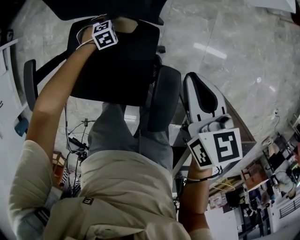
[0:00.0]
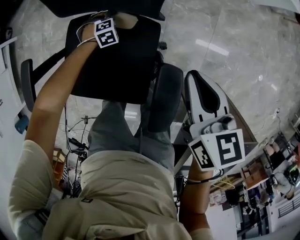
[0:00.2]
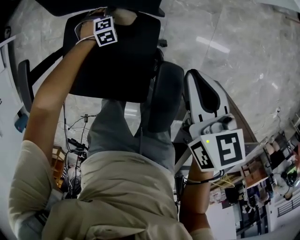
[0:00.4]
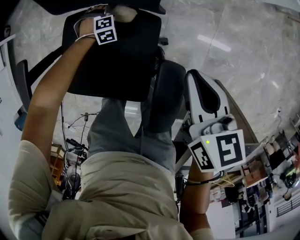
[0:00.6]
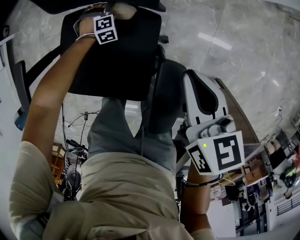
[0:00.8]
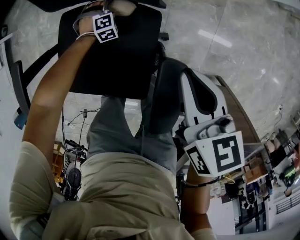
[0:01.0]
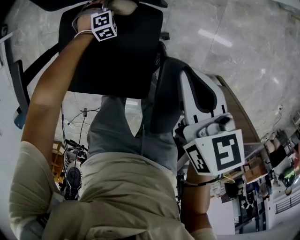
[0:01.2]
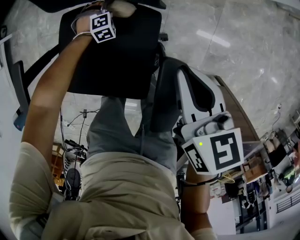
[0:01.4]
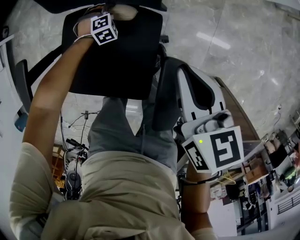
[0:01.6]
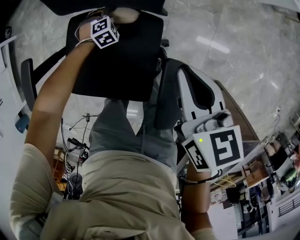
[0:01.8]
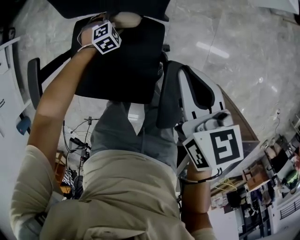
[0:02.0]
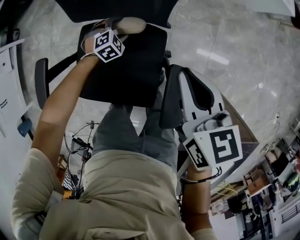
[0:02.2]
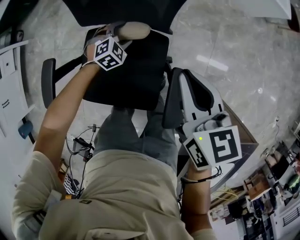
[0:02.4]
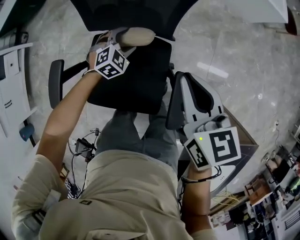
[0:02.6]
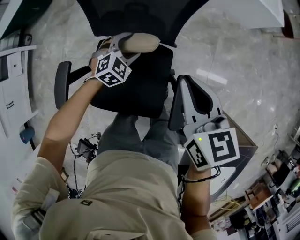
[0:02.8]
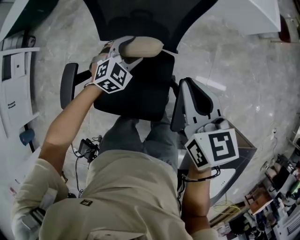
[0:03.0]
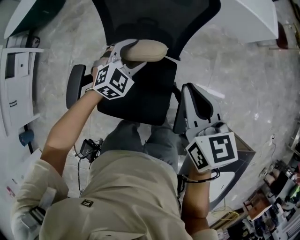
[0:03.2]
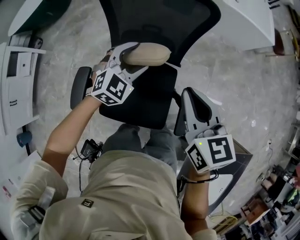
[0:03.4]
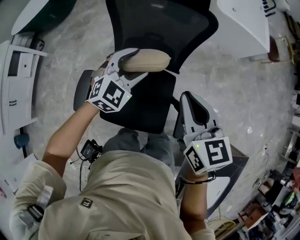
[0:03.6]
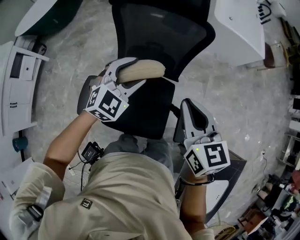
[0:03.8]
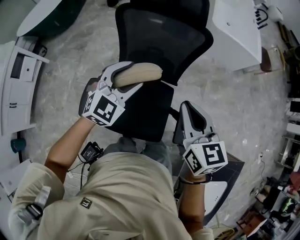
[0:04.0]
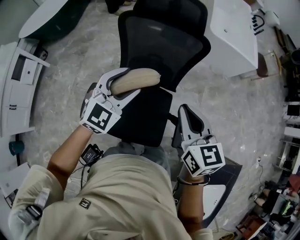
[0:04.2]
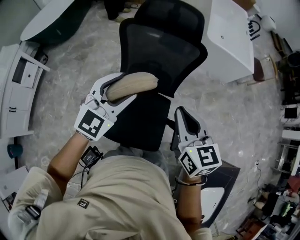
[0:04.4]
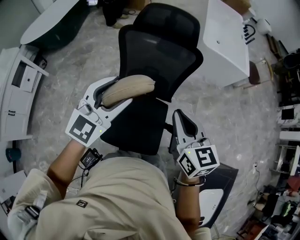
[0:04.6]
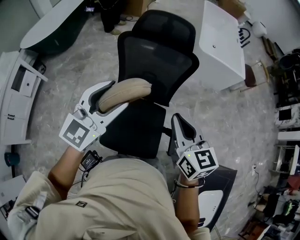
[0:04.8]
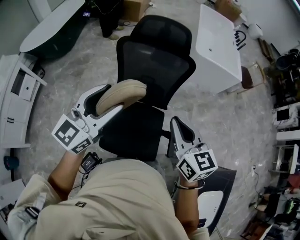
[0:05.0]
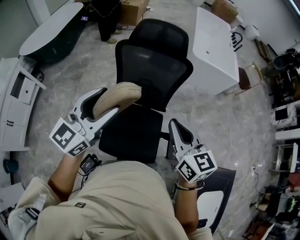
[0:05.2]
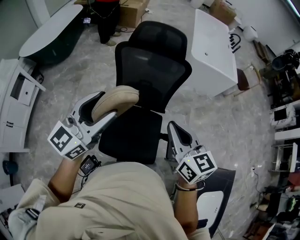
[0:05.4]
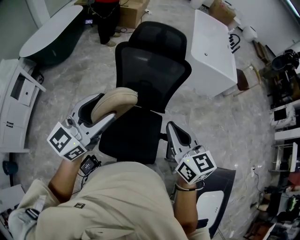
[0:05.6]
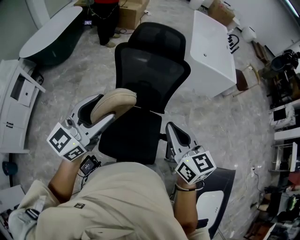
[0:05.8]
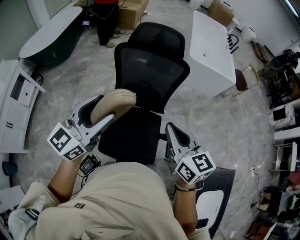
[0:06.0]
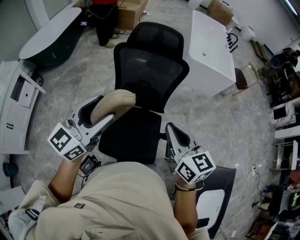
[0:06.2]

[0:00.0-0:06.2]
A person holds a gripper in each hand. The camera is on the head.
0:00.0 to 0:01.6: The right gripper moves approximately 5 cm.
0:01.6 to 0:03.2: The left gripper shifts roughly 40 cm upward, and tilts its fingers roughly 40 degrees upward; the right gripper moves upward, roughly 20 cm.
0:03.2 to 0:04.6: The left gripper heads upward and to the left, covering some 35 cm, and swivels some 40 degrees; the right gripper is displaced upward and to the left by some 15 cm.
0:04.6 to 0:06.2: The left gripper travels backward and upward by roughly 10 cm, and turns by about 20 degrees. Meanwhile the right gripper is displaced backward by approximately 5 cm.

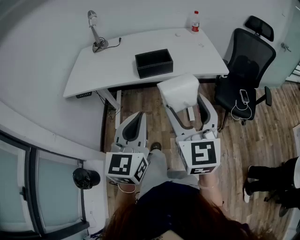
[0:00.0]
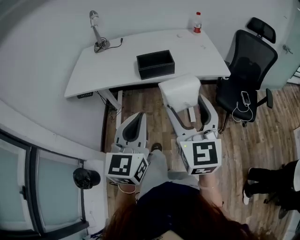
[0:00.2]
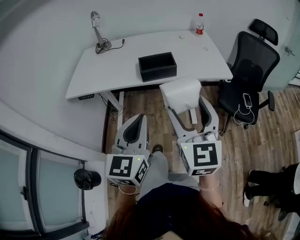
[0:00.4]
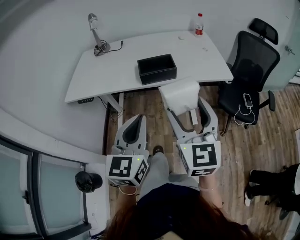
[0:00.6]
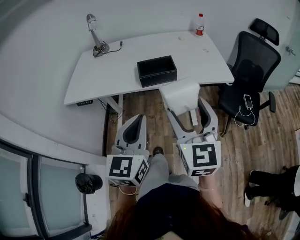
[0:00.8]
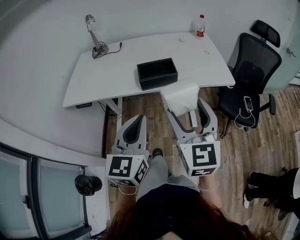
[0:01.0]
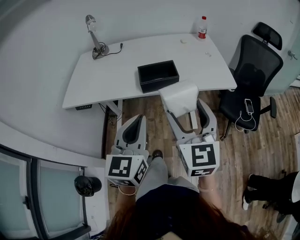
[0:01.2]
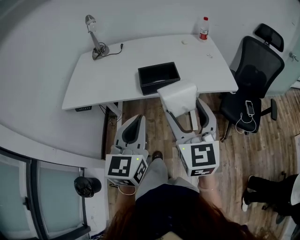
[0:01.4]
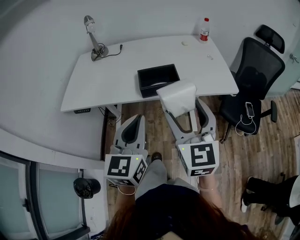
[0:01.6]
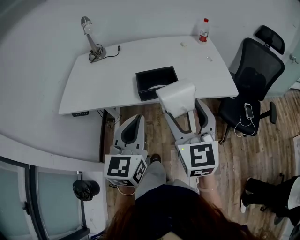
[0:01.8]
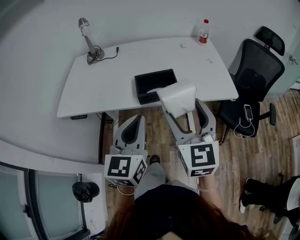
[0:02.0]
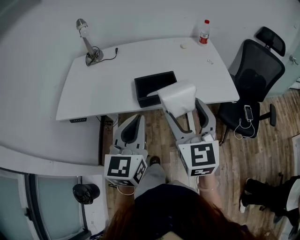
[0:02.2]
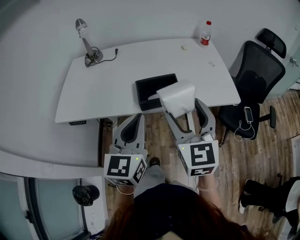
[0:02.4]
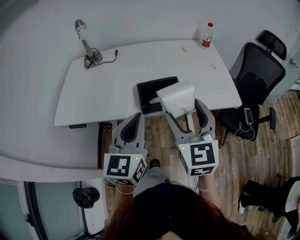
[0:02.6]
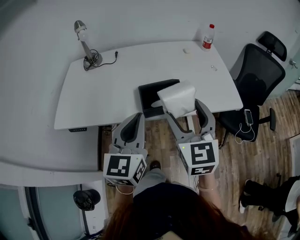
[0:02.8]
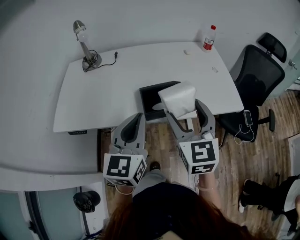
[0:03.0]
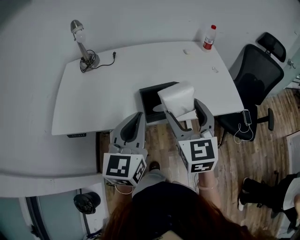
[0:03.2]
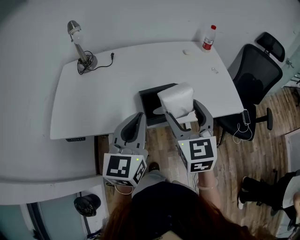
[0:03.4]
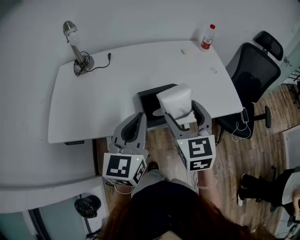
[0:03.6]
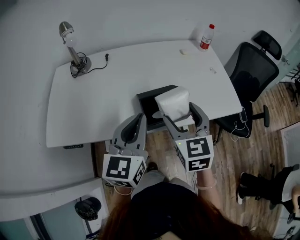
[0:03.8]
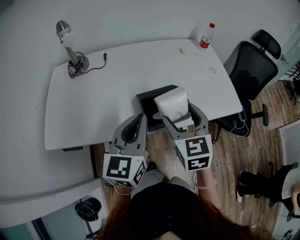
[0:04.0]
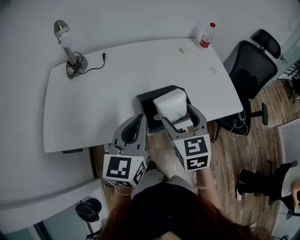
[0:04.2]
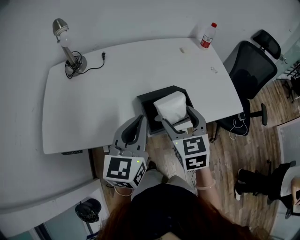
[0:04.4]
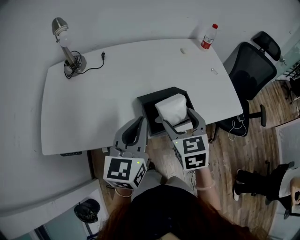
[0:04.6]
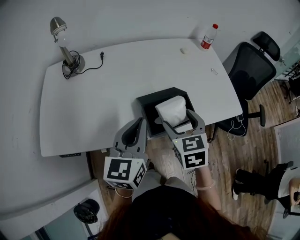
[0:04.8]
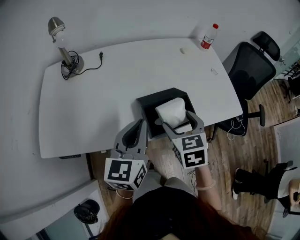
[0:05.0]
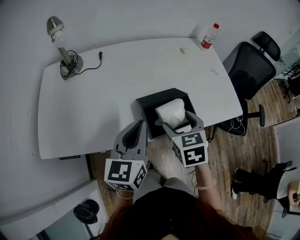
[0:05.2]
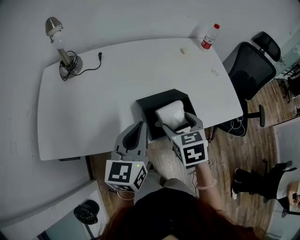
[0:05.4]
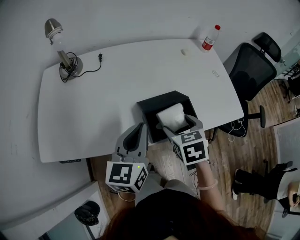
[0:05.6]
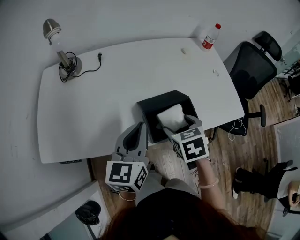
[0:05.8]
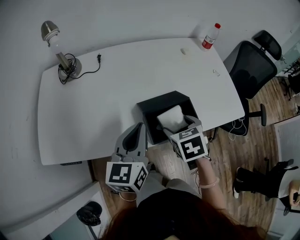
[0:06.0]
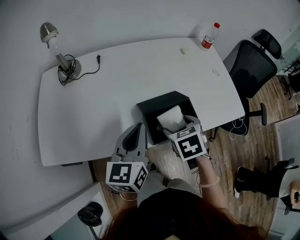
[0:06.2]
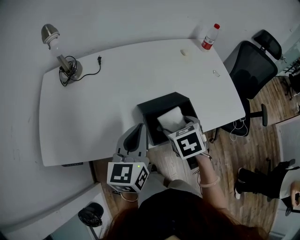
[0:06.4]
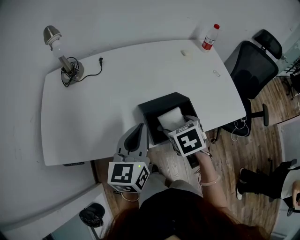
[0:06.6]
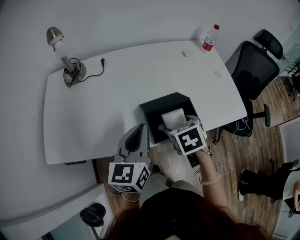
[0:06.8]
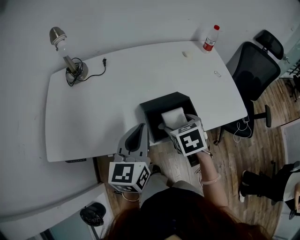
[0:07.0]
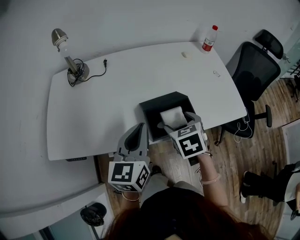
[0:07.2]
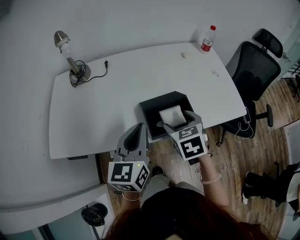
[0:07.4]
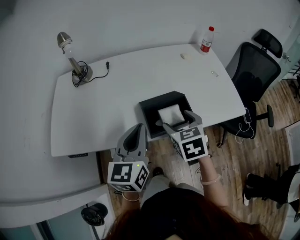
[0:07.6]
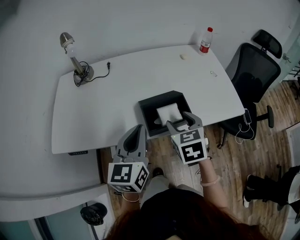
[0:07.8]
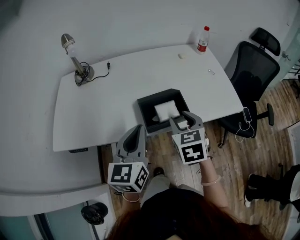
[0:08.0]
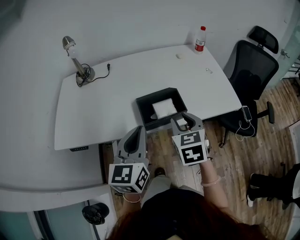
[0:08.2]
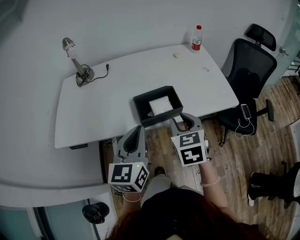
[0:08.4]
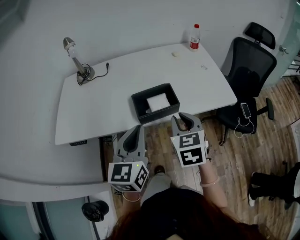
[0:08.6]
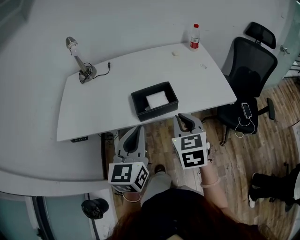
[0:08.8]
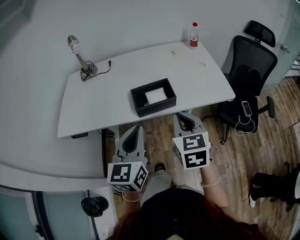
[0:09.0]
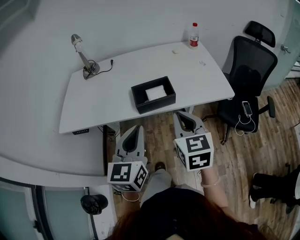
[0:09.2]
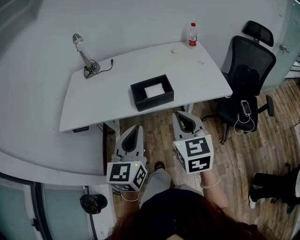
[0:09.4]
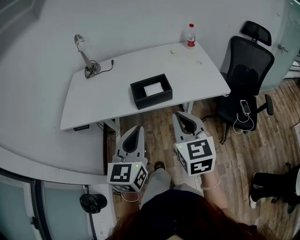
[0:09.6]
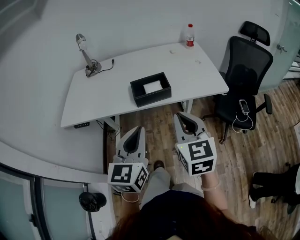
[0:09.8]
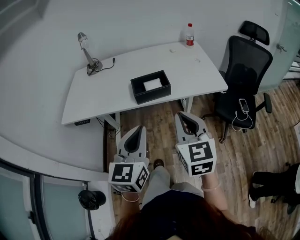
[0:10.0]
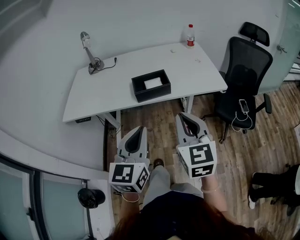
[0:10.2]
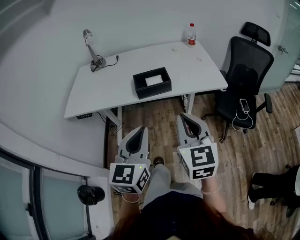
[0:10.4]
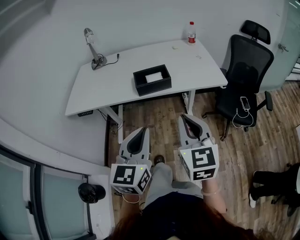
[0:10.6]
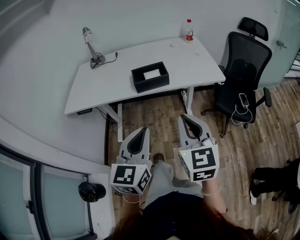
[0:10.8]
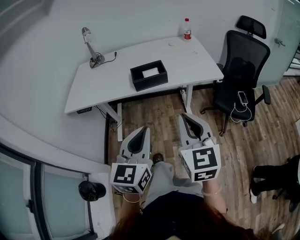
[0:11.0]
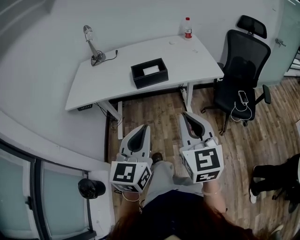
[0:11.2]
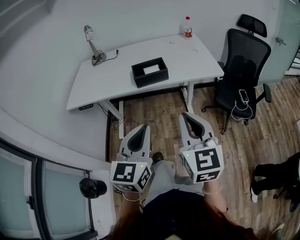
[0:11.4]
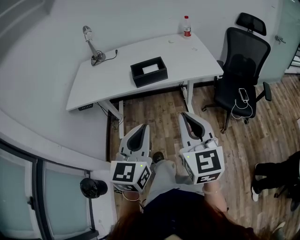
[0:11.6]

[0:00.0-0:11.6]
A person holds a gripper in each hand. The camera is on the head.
0:00.0 to 0:01.4: The two grippers go some 10 cm forward.
0:01.4 to 0:02.8: Both grippers travel together forward, approximately 15 cm.
0:02.8 to 0:04.4: The left gripper goes some 10 cm forward. Meanwhile the right gripper moves forward, downward and to the left, some 15 cm, and swivels roughly 20 degrees.
0:04.4 to 0:05.8: The right gripper heads downward, covering some 10 cm, and changes its angle by some 30 degrees.
0:05.8 to 0:07.2: The grippers move only a little.
0:07.2 to 0:08.8: The right gripper travels backward, upward and to the right by about 15 cm, changes its angle by approximately 20 degrees, and closes up. Meanwhile the left gripper moves backward and to the right, roughly 15 cm.
0:08.8 to 0:10.2: Both grippers travel together backward, approximately 15 cm.
0:10.2 to 0:11.6: Both grippers move backward, about 10 cm.

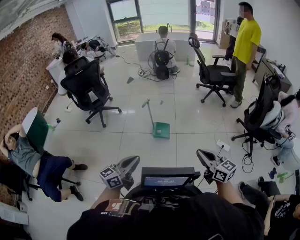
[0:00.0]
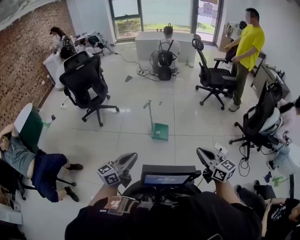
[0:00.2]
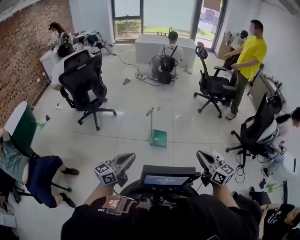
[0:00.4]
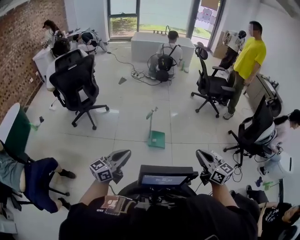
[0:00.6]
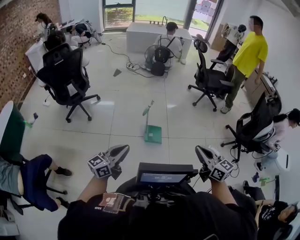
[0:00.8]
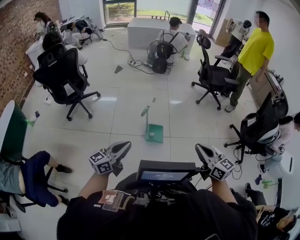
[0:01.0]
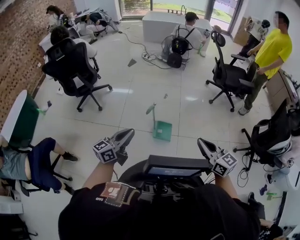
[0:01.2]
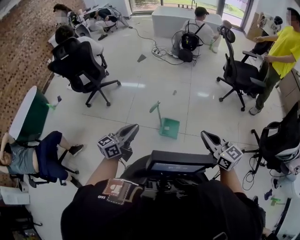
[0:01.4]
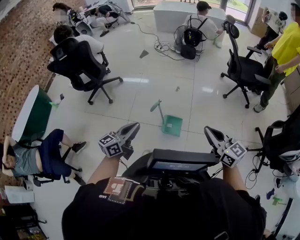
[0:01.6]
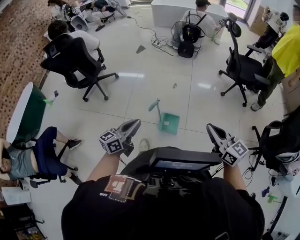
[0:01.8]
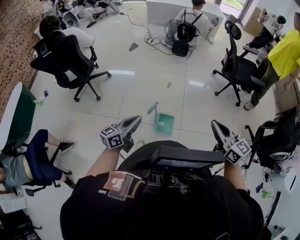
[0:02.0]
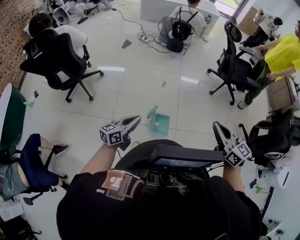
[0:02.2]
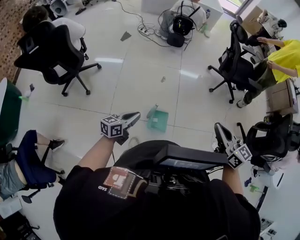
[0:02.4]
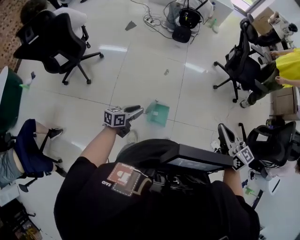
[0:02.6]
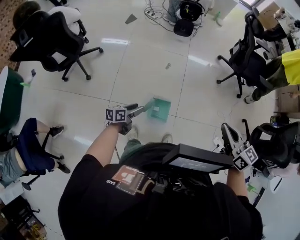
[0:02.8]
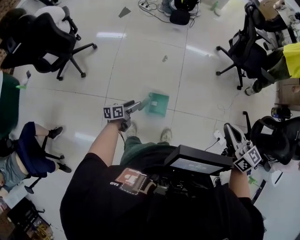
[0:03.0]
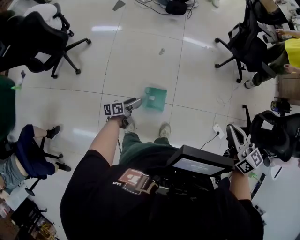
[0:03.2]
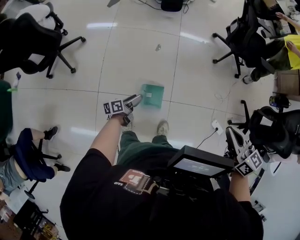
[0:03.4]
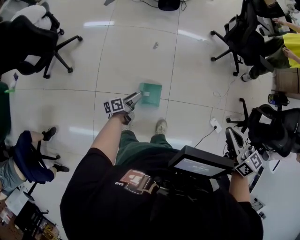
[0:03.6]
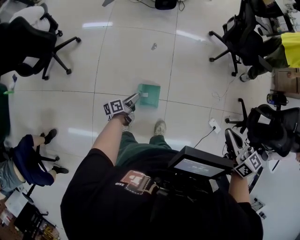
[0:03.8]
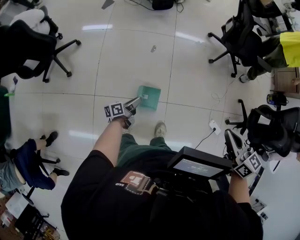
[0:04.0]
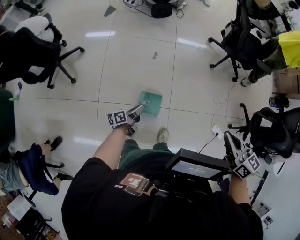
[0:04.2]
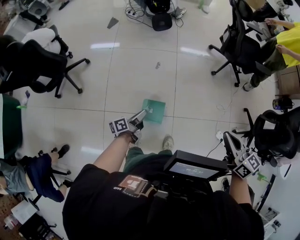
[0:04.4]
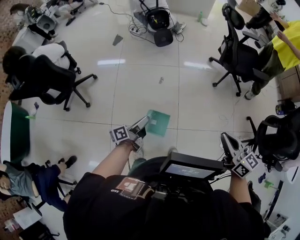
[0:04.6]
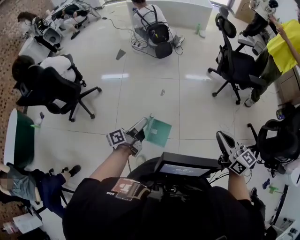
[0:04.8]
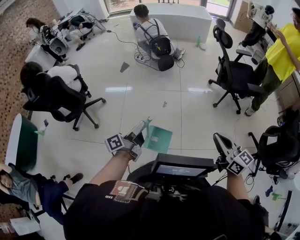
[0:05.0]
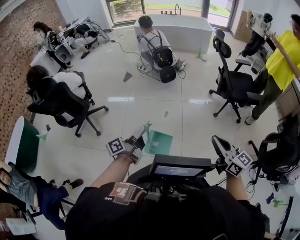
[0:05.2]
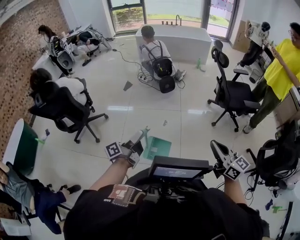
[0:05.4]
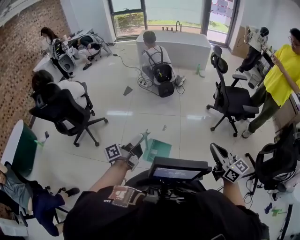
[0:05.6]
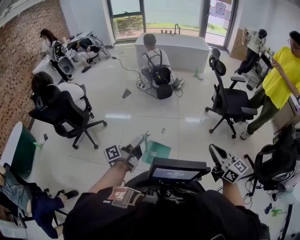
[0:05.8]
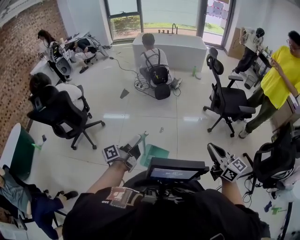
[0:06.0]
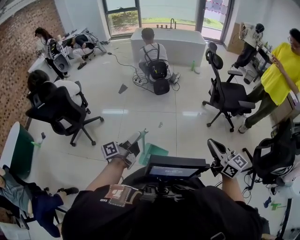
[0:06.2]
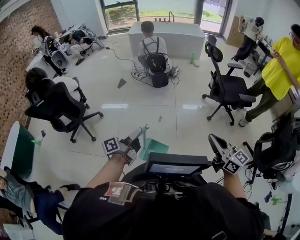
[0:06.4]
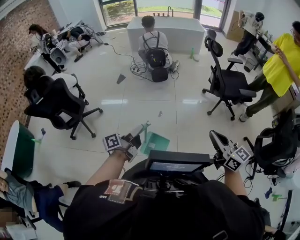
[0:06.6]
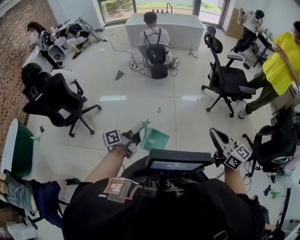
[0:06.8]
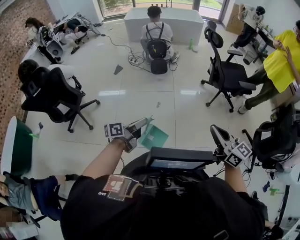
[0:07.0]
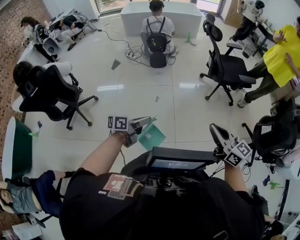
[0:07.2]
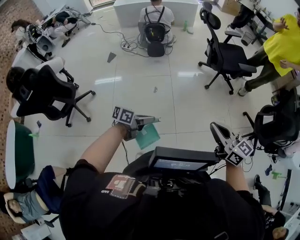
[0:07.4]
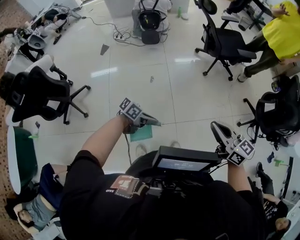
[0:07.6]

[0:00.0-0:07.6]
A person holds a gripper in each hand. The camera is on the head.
0:00.0 to 0:01.6: The two grippers travel together, forward, about 70 cm.
0:01.6 to 0:03.0: The two grippers travel together, forward, approximately 50 cm. The left gripper heads downward, covering about 40 cm, turns by some 40 degrees, and opens.
0:03.0 to 0:04.6: The right gripper moves to the right, approximately 10 cm, and goes downward and returns, approximately 10 cm each way; the left gripper moves upward and to the right, about 25 cm, turns by roughly 20 degrees, and closes its fingers.
0:04.6 to 0:06.0: Both grippers move upward and backward, approximately 25 cm.
0:06.0 to 0:07.6: The left gripper shifts approximately 25 cm downward, and angles its fingers downward, by approximately 30 degrees; the right gripper travels downward by approximately 15 cm.
